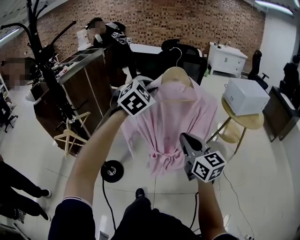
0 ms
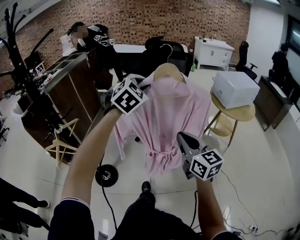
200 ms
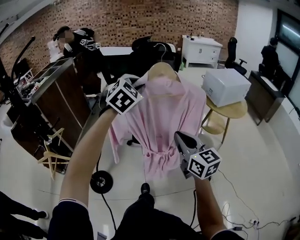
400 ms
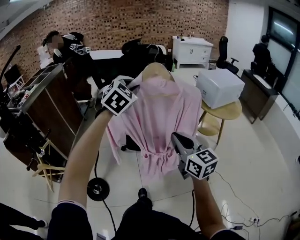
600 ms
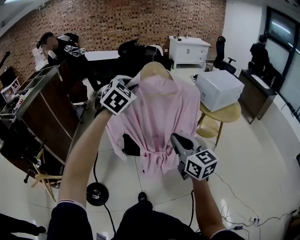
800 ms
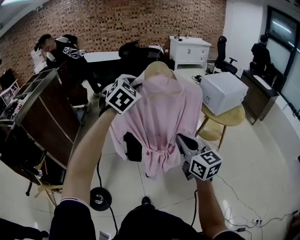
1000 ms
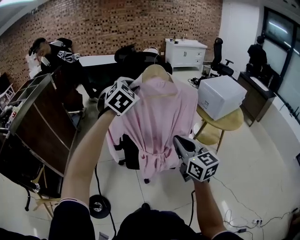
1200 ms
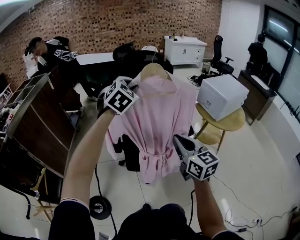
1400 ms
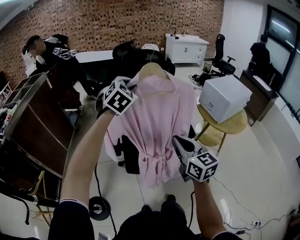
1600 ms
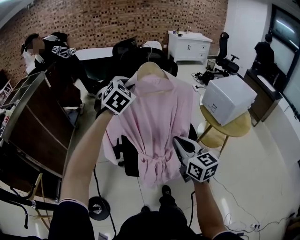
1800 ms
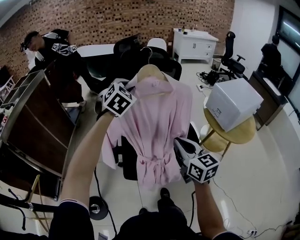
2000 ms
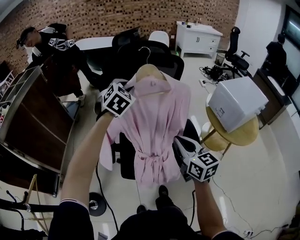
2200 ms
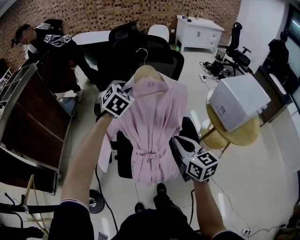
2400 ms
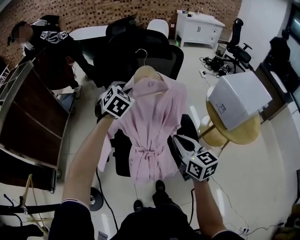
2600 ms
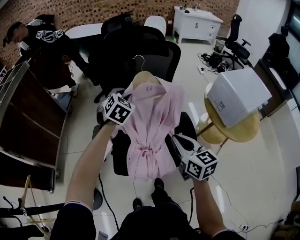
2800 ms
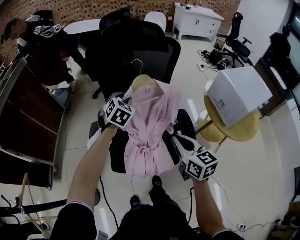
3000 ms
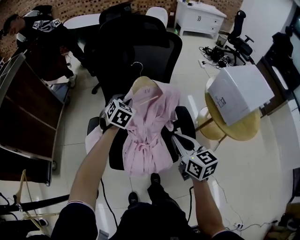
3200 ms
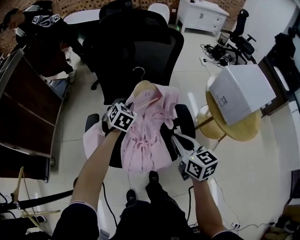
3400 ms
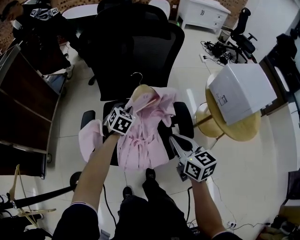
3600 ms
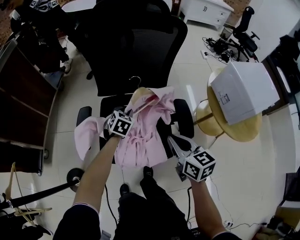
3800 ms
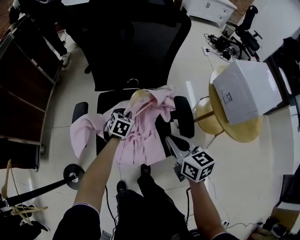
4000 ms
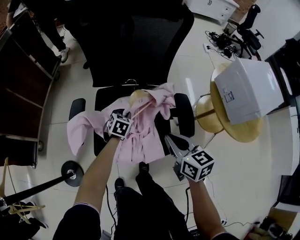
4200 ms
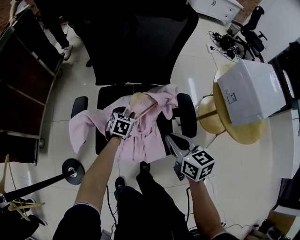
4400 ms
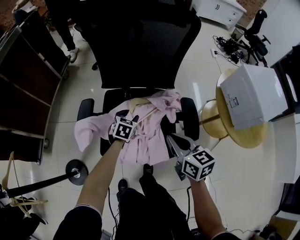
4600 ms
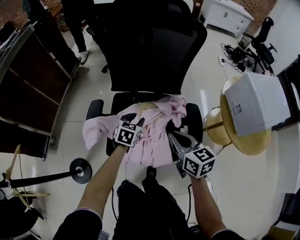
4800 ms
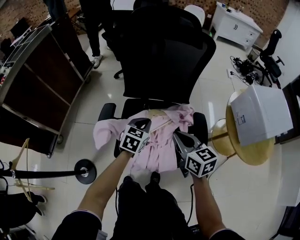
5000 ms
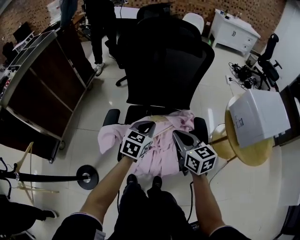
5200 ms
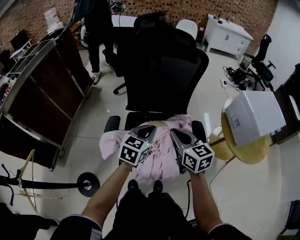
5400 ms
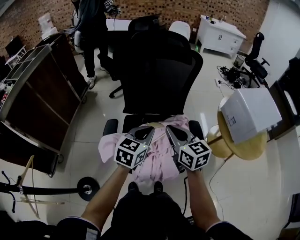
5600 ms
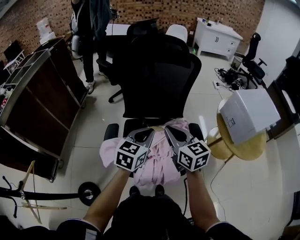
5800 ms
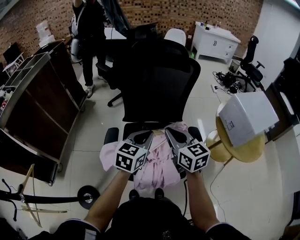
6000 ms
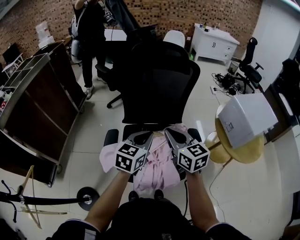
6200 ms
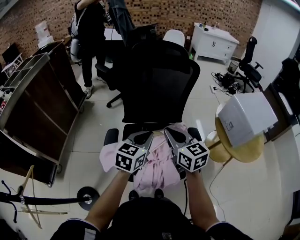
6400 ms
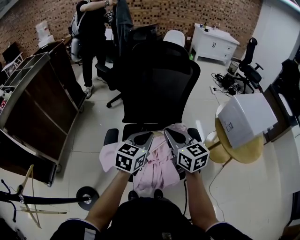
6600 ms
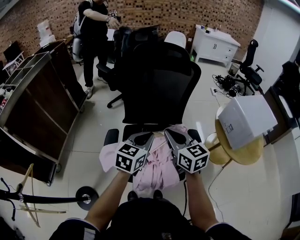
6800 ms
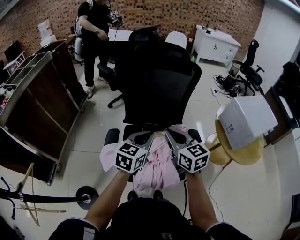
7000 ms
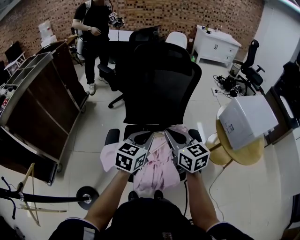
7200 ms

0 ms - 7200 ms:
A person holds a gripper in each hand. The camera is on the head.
0 ms - 1400 ms: Both grippers travel together forward, some 30 cm.
1400 ms - 2800 ms: The right gripper is displaced forward, downward and to the right by some 25 cm. Meanwhile the left gripper moves downward and forward, some 30 cm.
2800 ms - 4400 ms: The right gripper shifts roughly 10 cm downward; the left gripper travels downward by about 30 cm, and rotates about 30 degrees.
4400 ms - 5800 ms: The right gripper moves upward and to the left, about 20 cm, and swivels some 20 degrees; the left gripper shifts approximately 30 cm upward, swivels some 30 degrees, and closes.
5800 ms - 7200 ms: The grippers move only a little.

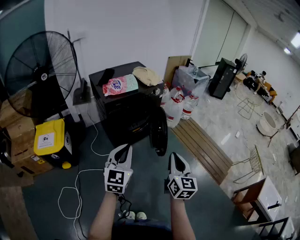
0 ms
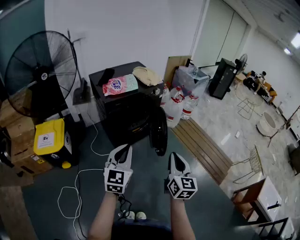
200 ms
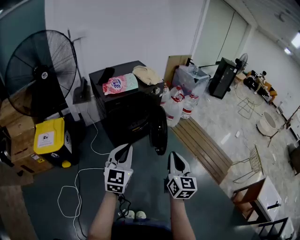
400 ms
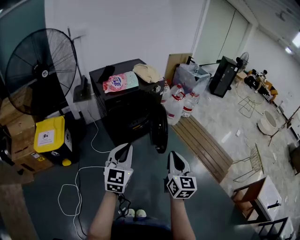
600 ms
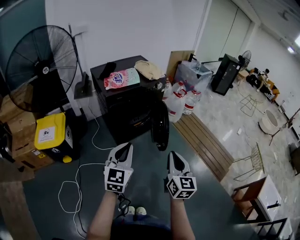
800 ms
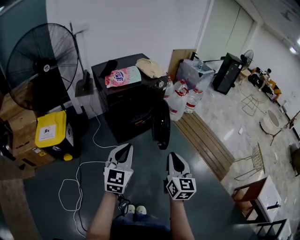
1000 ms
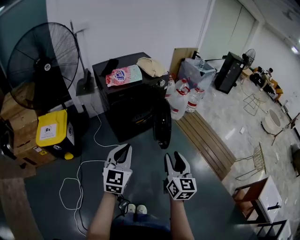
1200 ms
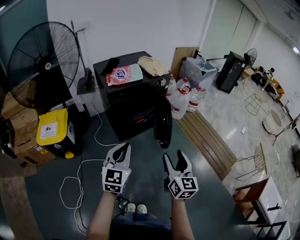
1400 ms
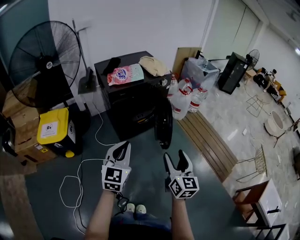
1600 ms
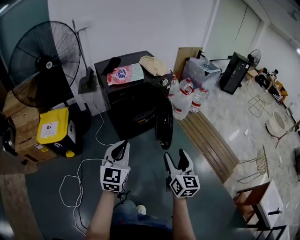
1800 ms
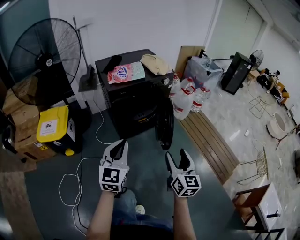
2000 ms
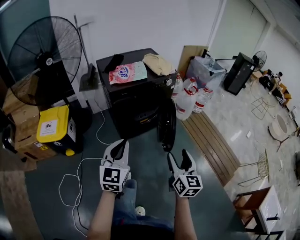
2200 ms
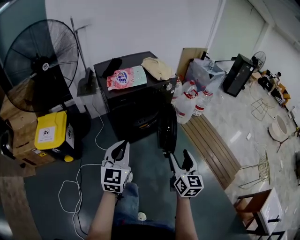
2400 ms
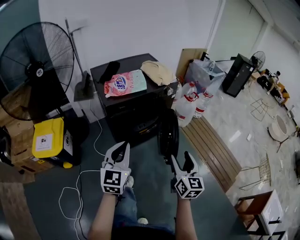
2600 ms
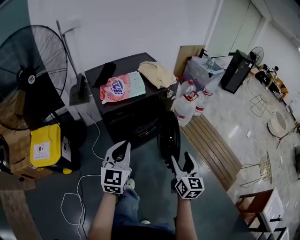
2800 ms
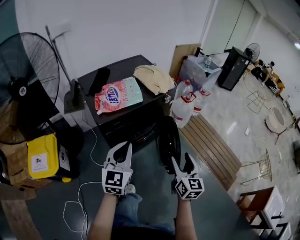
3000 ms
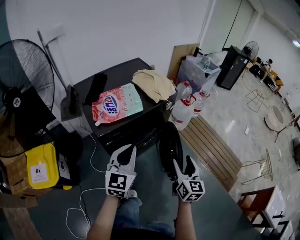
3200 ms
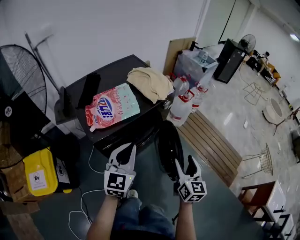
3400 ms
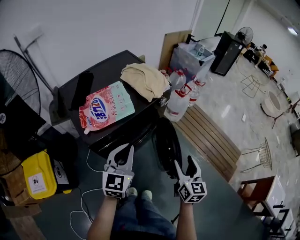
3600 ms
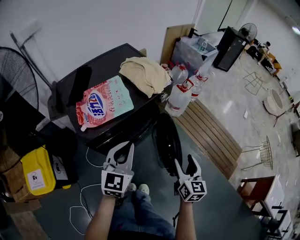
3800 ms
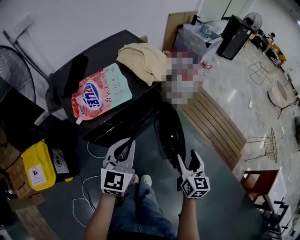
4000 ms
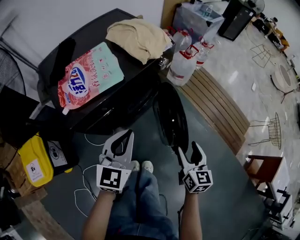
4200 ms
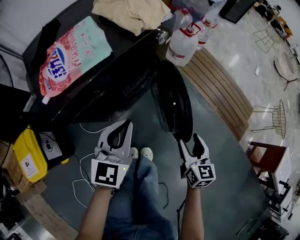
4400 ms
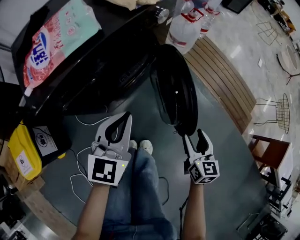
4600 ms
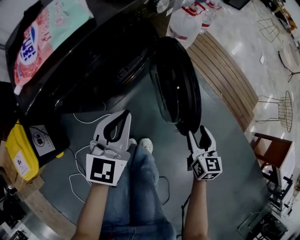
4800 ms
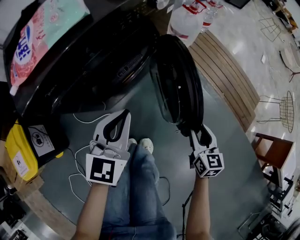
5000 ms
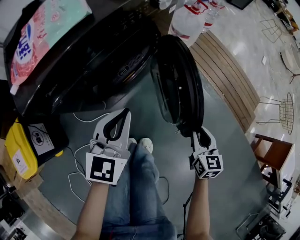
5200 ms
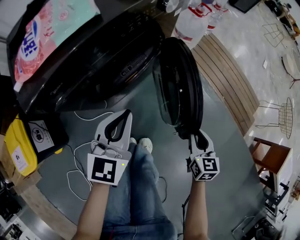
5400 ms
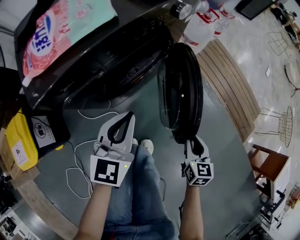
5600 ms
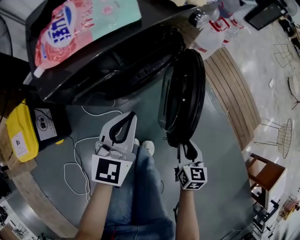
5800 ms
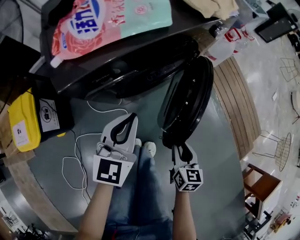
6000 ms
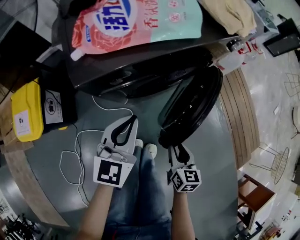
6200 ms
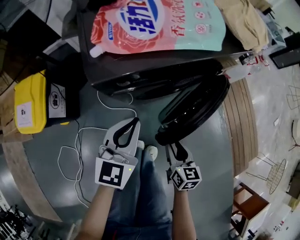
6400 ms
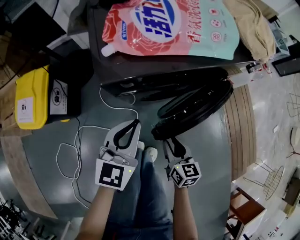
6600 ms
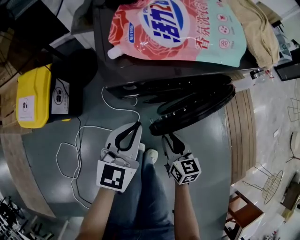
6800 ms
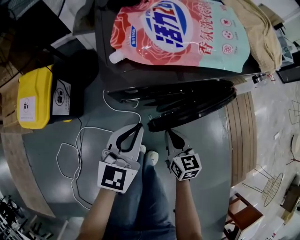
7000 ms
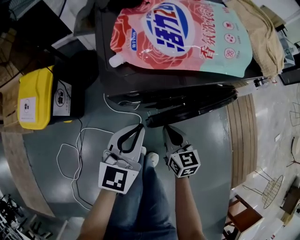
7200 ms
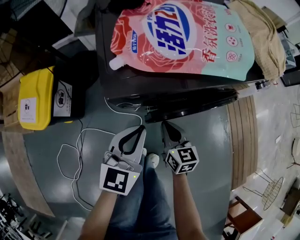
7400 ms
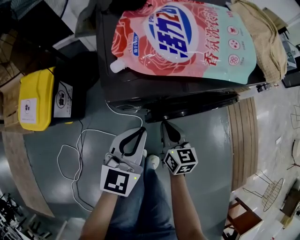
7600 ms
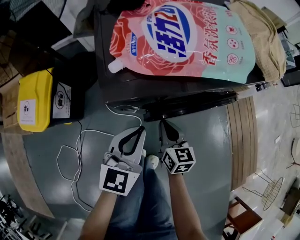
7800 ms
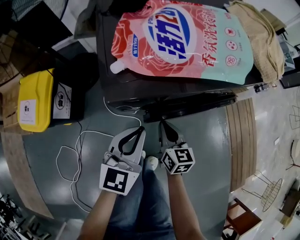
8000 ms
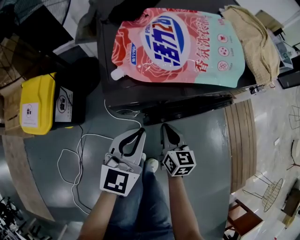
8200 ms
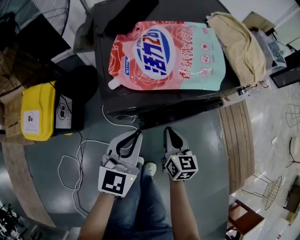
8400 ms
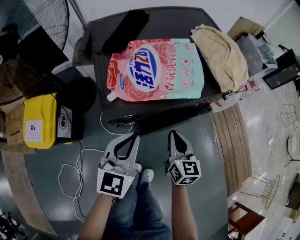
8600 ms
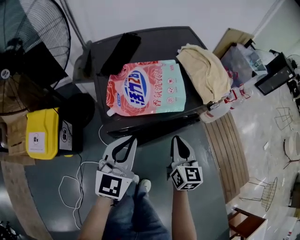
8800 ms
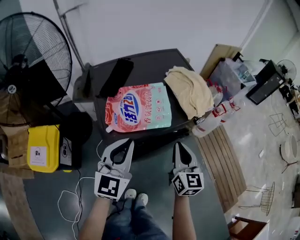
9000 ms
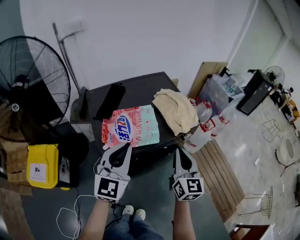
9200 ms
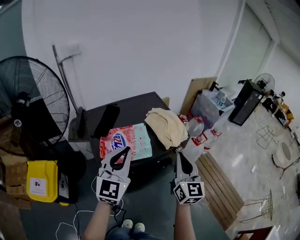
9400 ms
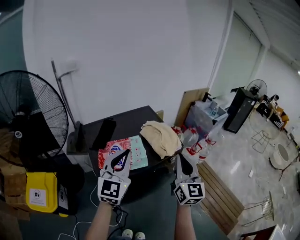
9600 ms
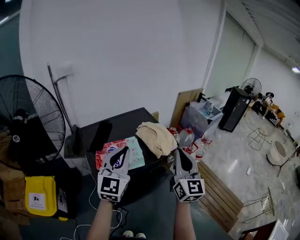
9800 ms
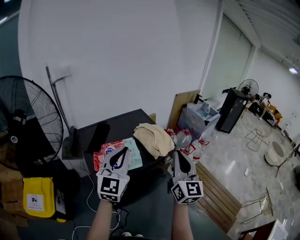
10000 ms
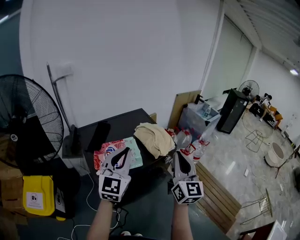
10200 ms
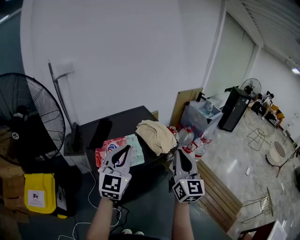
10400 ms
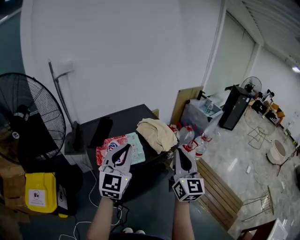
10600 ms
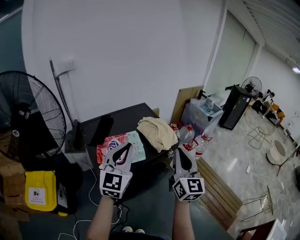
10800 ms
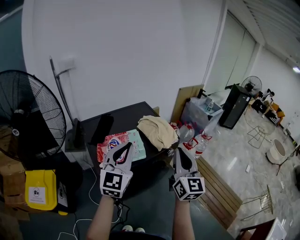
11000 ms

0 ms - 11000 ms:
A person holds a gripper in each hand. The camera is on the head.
0 ms - 1600 ms: The right gripper opens up.
1600 ms - 3200 ms: The two grippers go some 35 cm forward.
3200 ms - 4800 ms: The two grippers go some 30 cm downward.
4800 ms - 6200 ms: Both grippers move to the left, some 15 cm. The right gripper changes its angle by roughly 20 degrees.
6200 ms - 7800 ms: The left gripper shifts some 5 cm to the left. Meanwhile the right gripper heads forward and to the left, covering some 20 cm, turns by some 20 degrees, and closes its fingers.
7800 ms - 9400 ms: The right gripper moves upward and to the right, some 50 cm, and rotates roughly 40 degrees. Meanwhile the left gripper goes about 35 cm upward, and swivels roughly 30 degrees.
9400 ms - 11000 ms: The right gripper shifts some 10 cm upward. Meanwhile the left gripper shifts by about 5 cm.

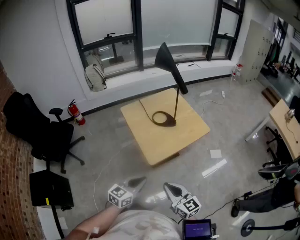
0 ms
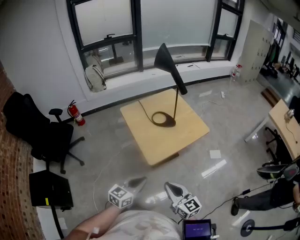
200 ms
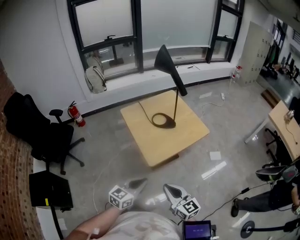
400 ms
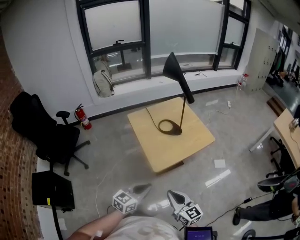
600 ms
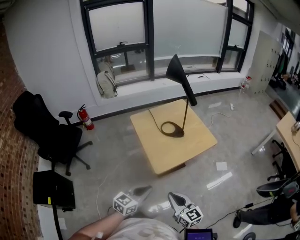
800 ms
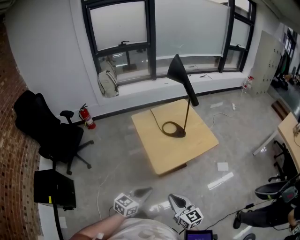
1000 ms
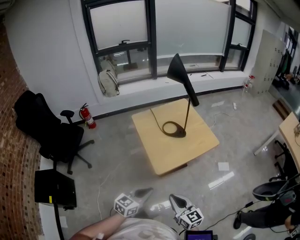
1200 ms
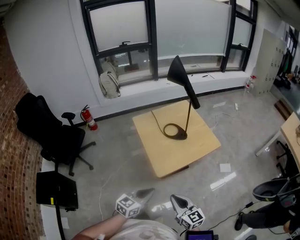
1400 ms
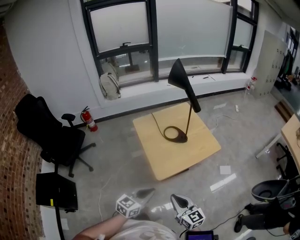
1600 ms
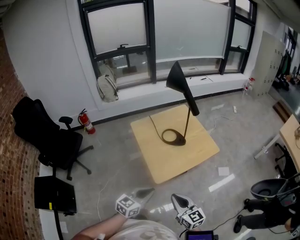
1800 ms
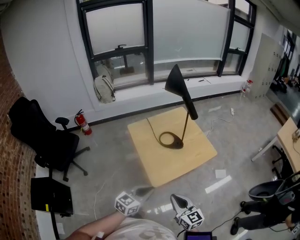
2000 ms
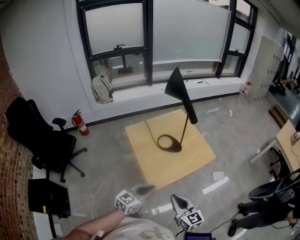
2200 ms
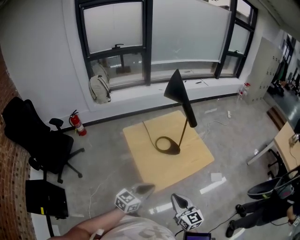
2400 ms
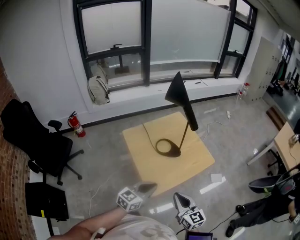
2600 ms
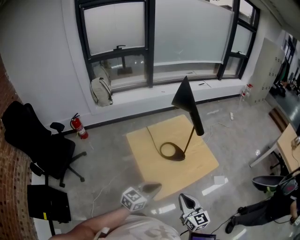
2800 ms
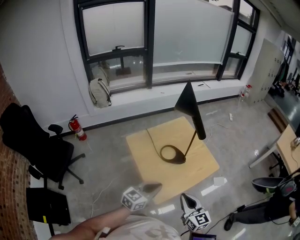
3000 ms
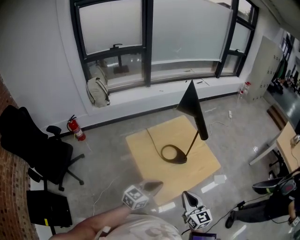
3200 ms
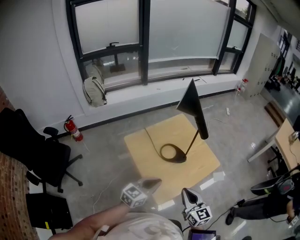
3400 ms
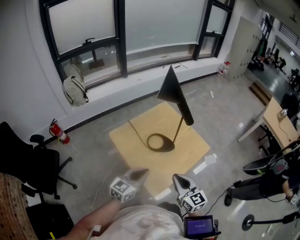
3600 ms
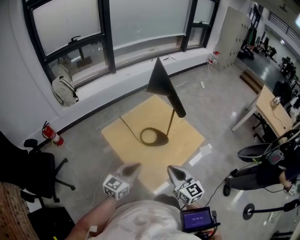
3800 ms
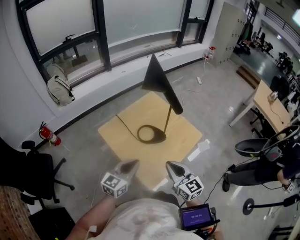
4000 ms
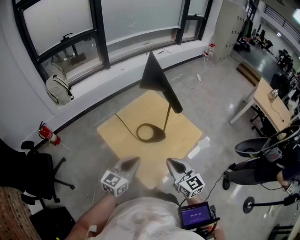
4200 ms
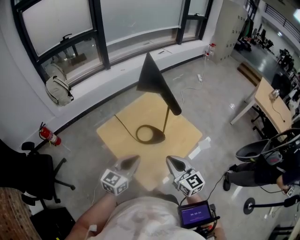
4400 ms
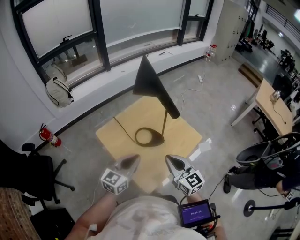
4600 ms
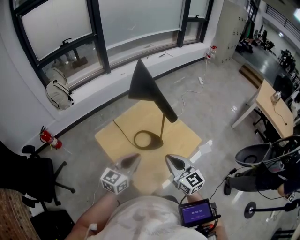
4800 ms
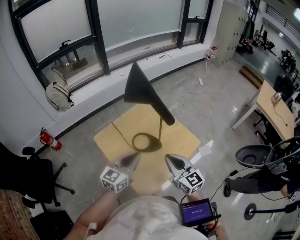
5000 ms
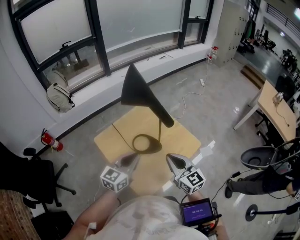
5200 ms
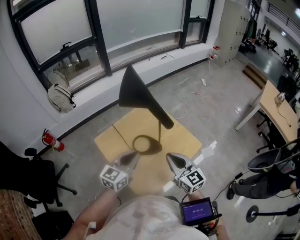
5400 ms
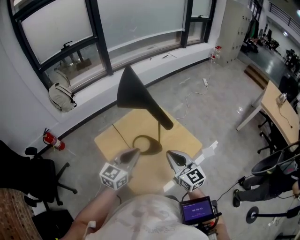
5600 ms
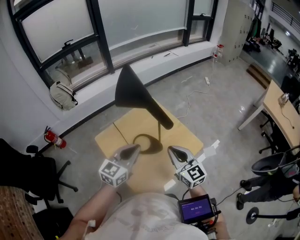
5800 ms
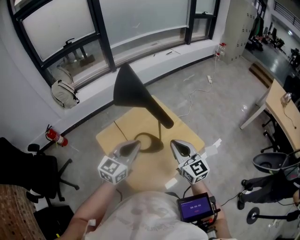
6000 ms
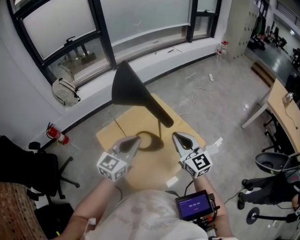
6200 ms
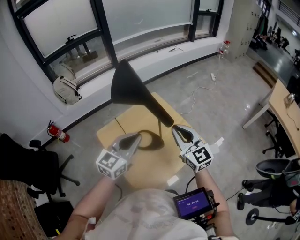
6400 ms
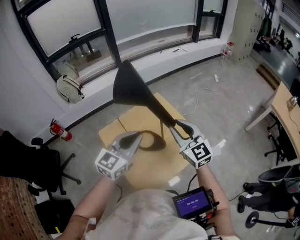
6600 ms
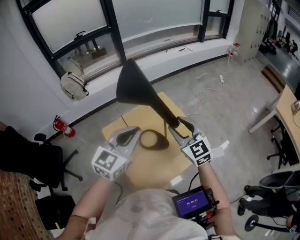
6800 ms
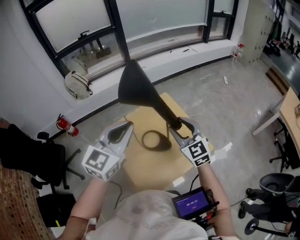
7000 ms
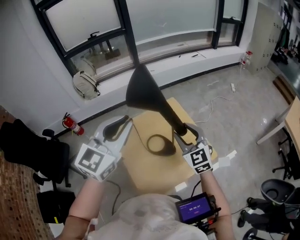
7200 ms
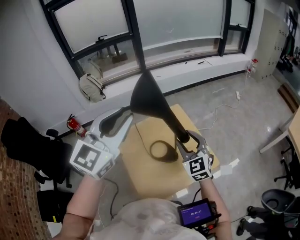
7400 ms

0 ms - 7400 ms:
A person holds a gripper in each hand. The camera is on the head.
0 ms - 1400 ms: There are only small adjustments of the grippers.
1400 ms - 3000 ms: Both grippers move forward, approximately 20 cm.
3000 ms - 4400 ms: Both grippers move forward, some 10 cm.
4400 ms - 6000 ms: The right gripper travels forward and to the right by about 15 cm, while the left gripper travels forward, upward and to the right by approximately 15 cm.
6000 ms - 7400 ms: The left gripper travels upward by roughly 25 cm, turns by some 30 degrees, and opens. The right gripper is displaced forward by about 10 cm, turns by approximately 30 degrees, and opens up.
